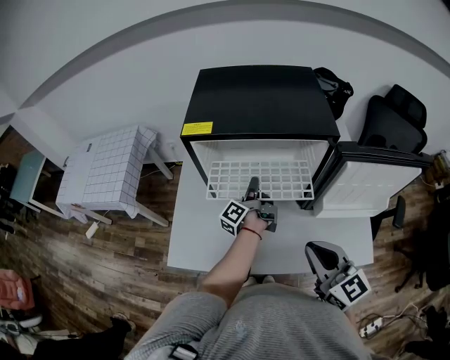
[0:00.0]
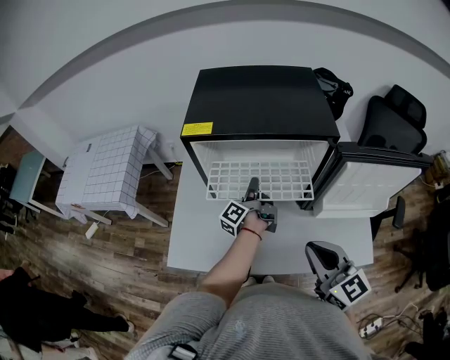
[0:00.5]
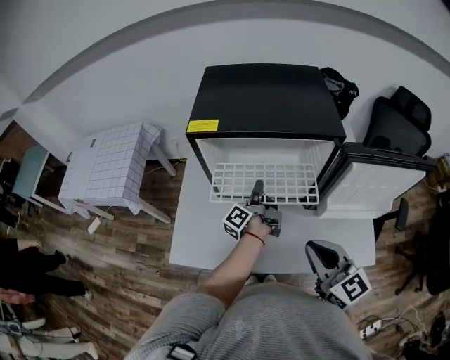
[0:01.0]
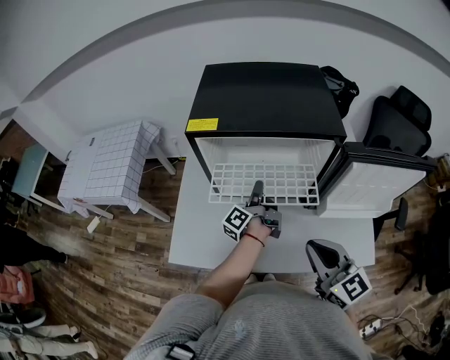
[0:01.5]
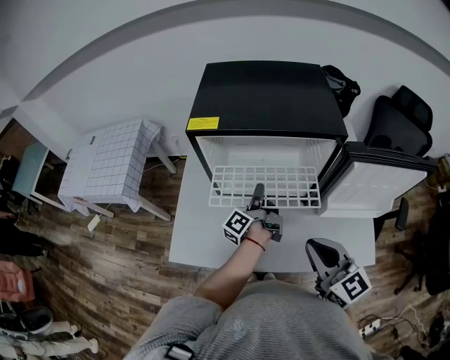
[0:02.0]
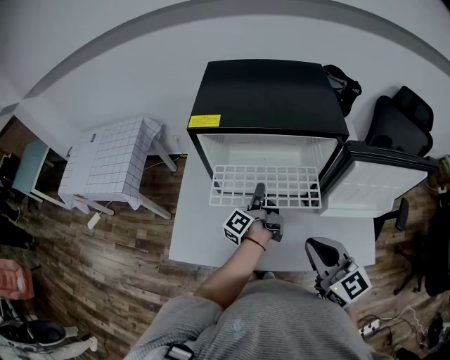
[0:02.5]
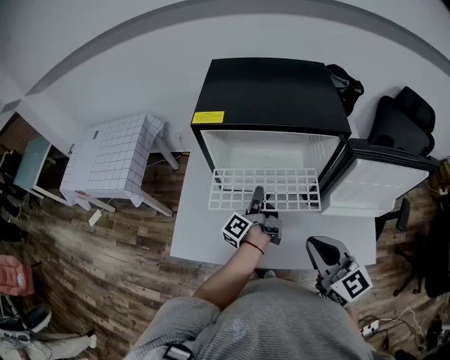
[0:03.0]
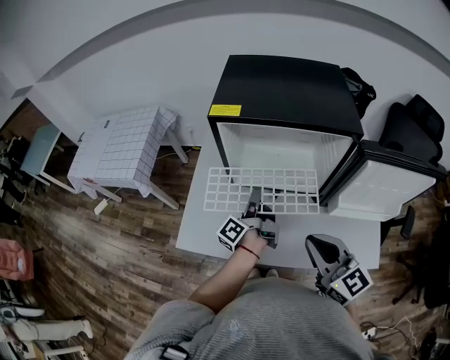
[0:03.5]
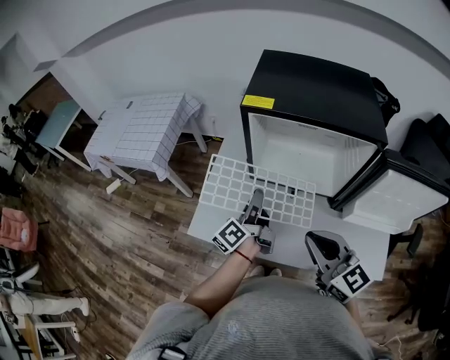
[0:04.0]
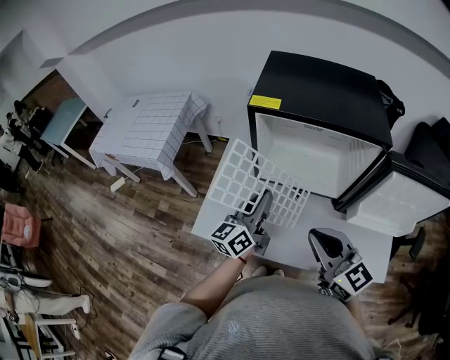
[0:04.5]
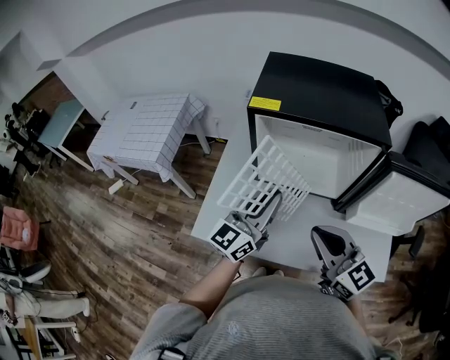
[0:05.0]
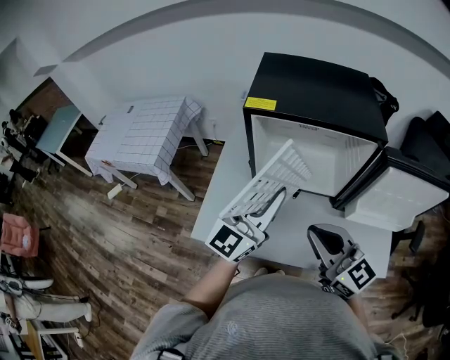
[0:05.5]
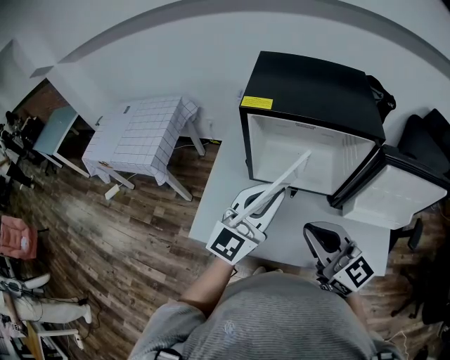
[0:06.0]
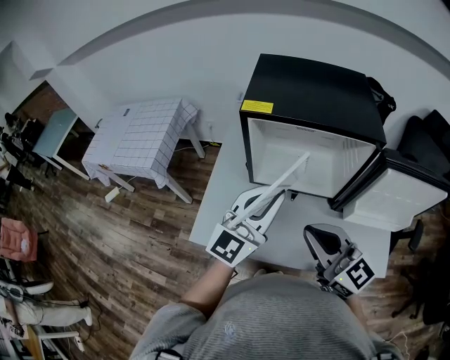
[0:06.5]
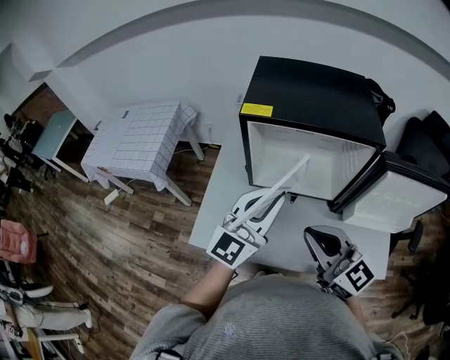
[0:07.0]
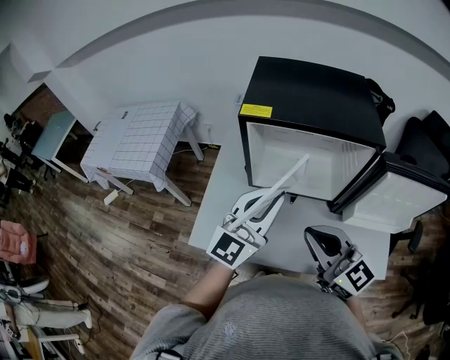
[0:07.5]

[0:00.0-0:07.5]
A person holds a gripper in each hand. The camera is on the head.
0:00.0 to 0:02.0: The grippers stay close to where they were, moving slightly.
0:02.0 to 0:04.0: The right gripper goes some 5 cm to the left. The left gripper goes approximately 15 cm to the left and backward, and swivels approximately 20 degrees.
0:04.0 to 0:05.5: The left gripper travels upward by roughly 15 cm, and rotates around the line of its fingers by about 60 degrees, clockwise from behind.
0:05.5 to 0:07.5: The grippers make only small movements.

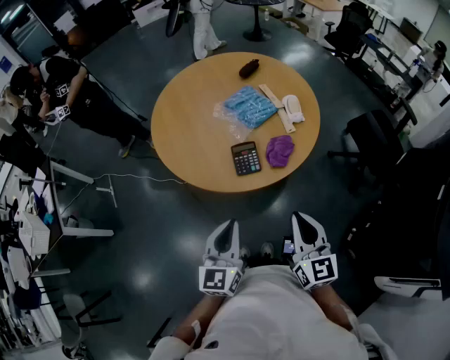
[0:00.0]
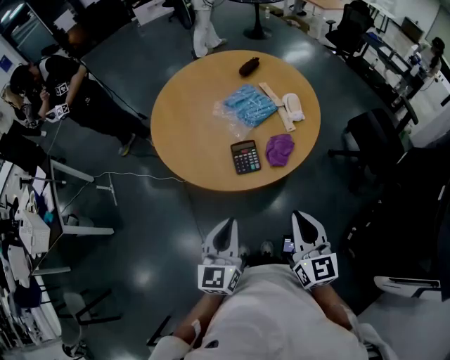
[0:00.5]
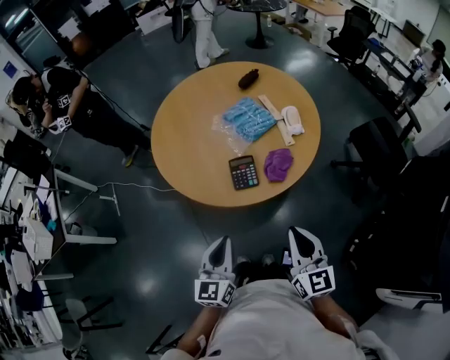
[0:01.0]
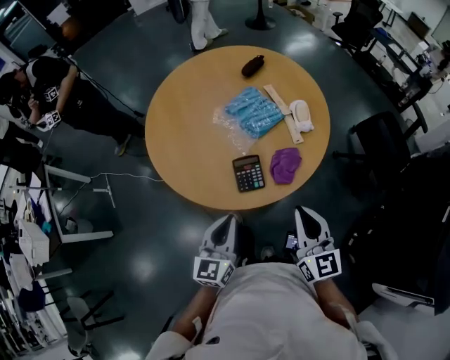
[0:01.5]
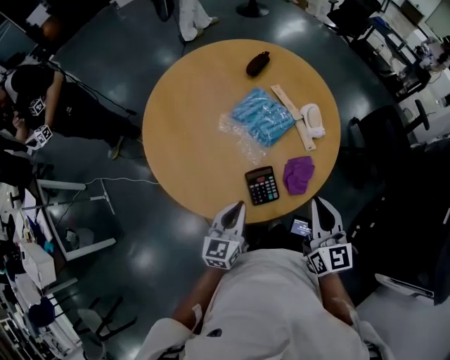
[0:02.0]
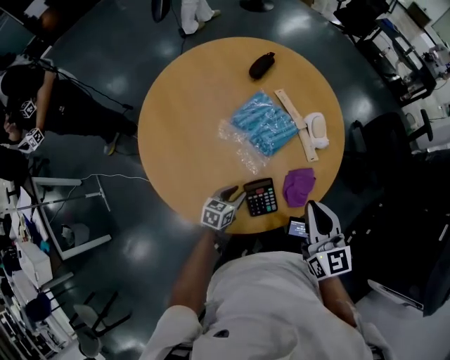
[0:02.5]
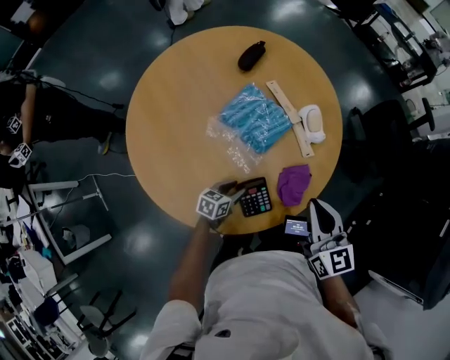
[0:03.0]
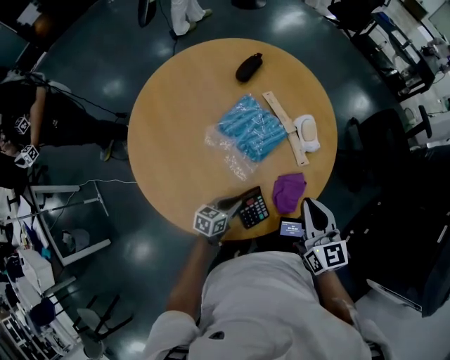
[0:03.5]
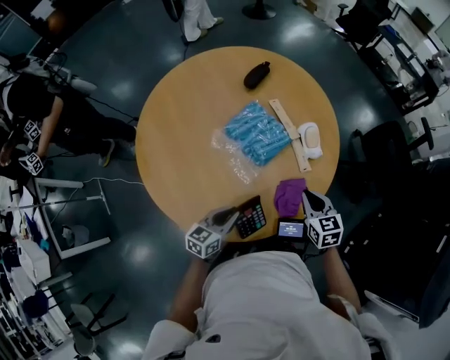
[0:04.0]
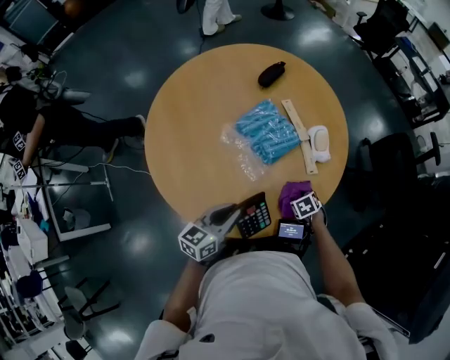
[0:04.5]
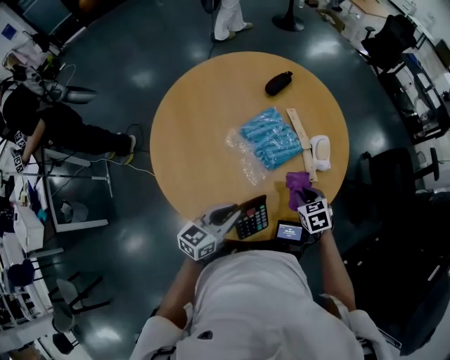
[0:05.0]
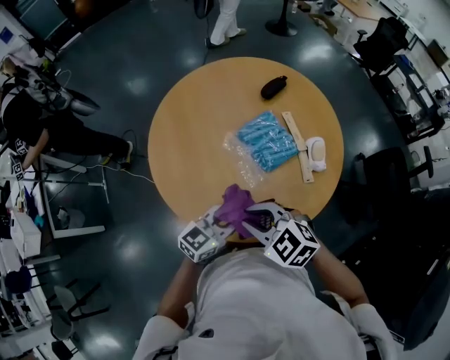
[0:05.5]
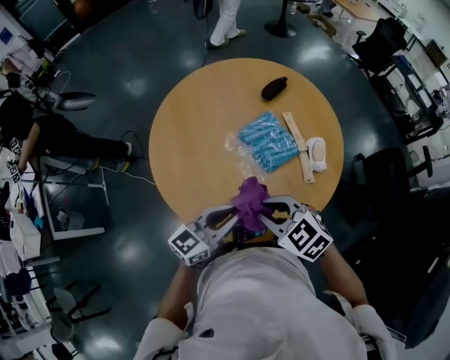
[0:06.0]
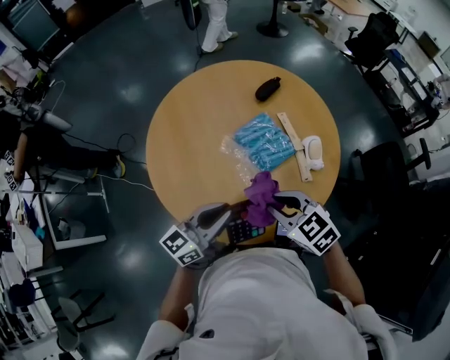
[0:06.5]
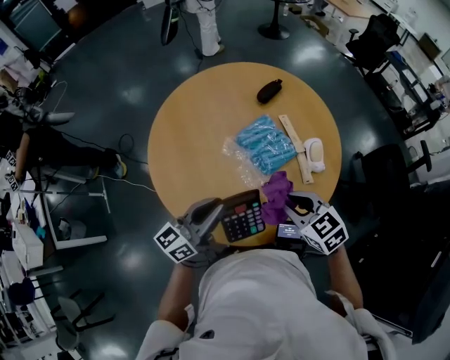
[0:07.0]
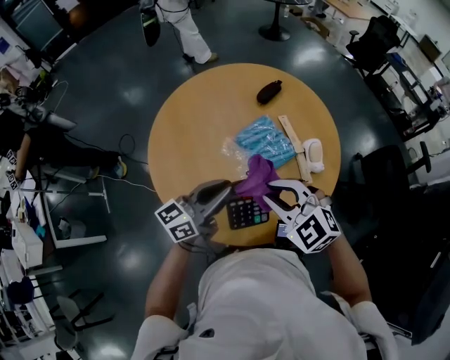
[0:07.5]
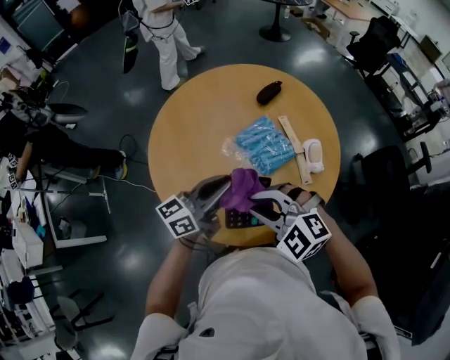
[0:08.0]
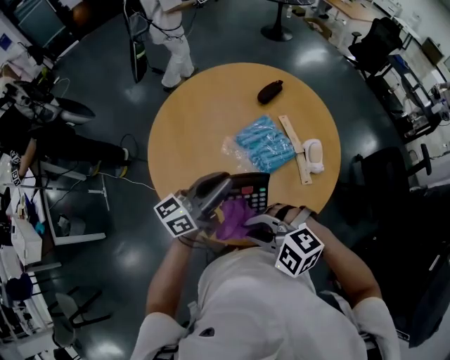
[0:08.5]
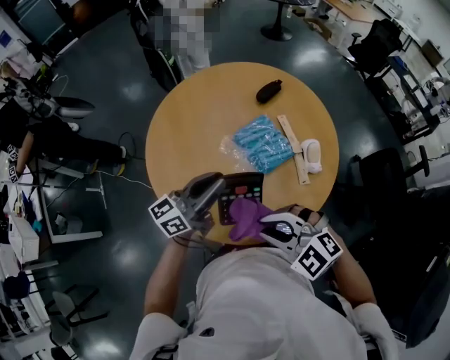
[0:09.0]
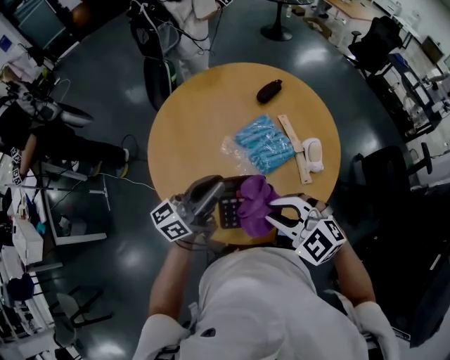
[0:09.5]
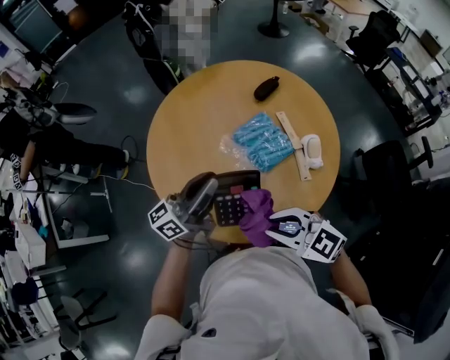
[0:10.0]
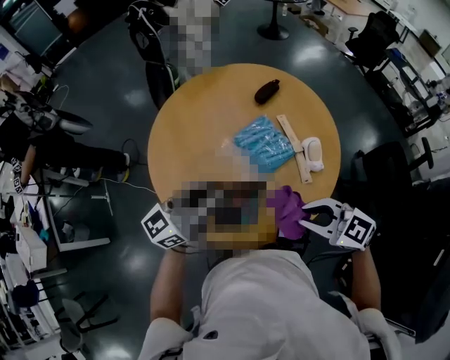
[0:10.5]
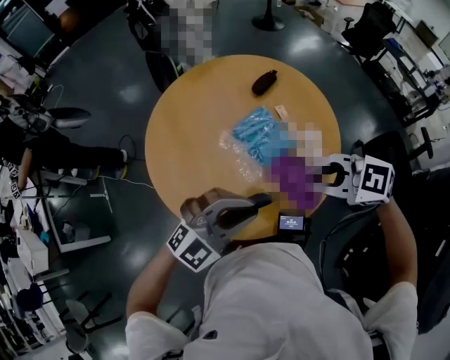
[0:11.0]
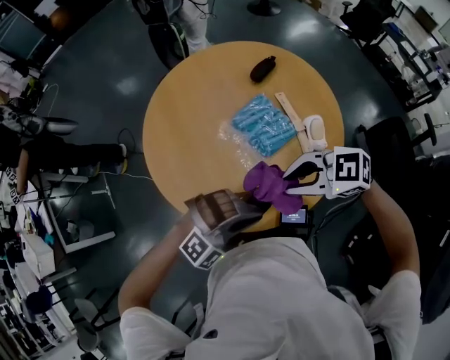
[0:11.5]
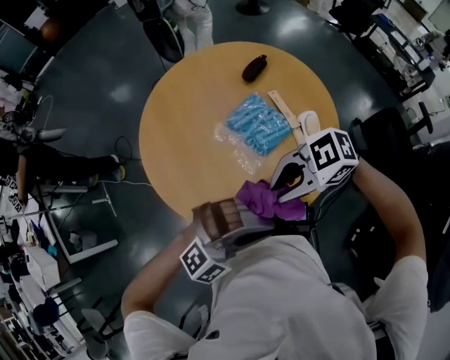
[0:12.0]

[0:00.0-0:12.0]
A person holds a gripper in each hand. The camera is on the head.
0:00.0 to 0:02.0: The left gripper goes about 30 cm forward and downward. Meanwhile the right gripper heads forward, covering roughly 25 cm.
0:02.0 to 0:04.0: The right gripper shifts about 20 cm downward and forward, and swivels some 30 degrees. The left gripper is displaced downward and forward by approximately 10 cm, changes its angle by about 20 degrees, and opens, then closes again.
0:04.0 to 0:06.0: The right gripper ends up about 25 cm from where it was, turns by about 50 degrees, and opens and closes again. The left gripper moves upward, approximately 15 cm, and rotates approximately 20 degrees.
0:06.0 to 0:08.0: The right gripper travels to the right and back again, some 10 cm each way, and turns by about 30 degrees. Meanwhile the left gripper travels forward and upward by approximately 10 cm, and changes its angle by about 20 degrees.
0:08.0 to 0:10.0: The right gripper goes forward and backward, approximately 5 cm each way, reversing 2 times, and turns by approximately 30 degrees.
0:10.0 to 0:12.0: The left gripper travels downward and back again, about 5 cm each way, and twists roughly 80 degrees clockwise, seen from behind; the right gripper turns by about 40 degrees.

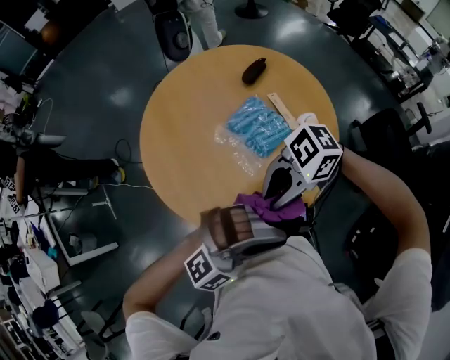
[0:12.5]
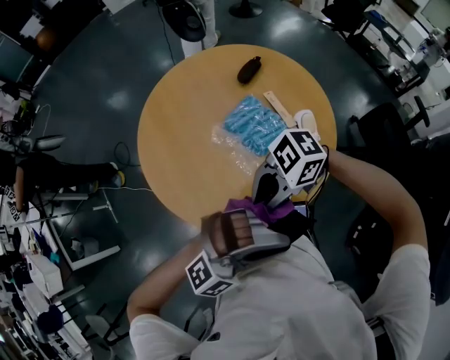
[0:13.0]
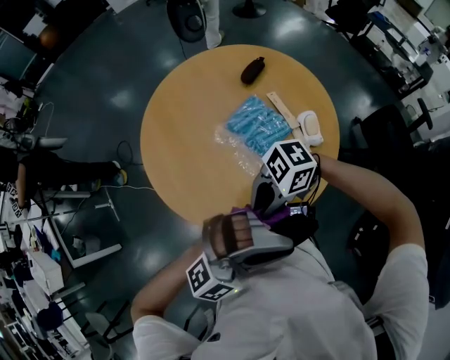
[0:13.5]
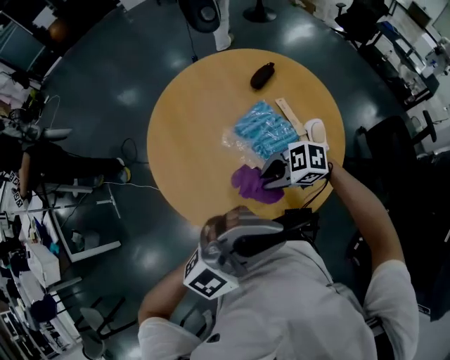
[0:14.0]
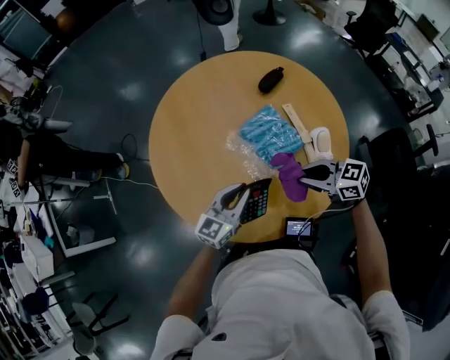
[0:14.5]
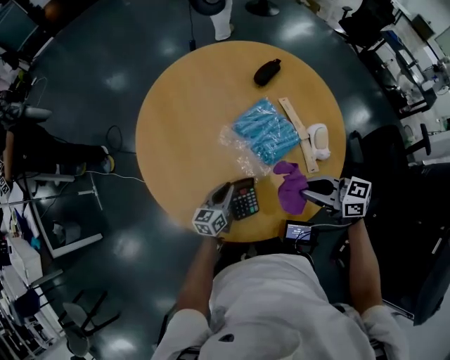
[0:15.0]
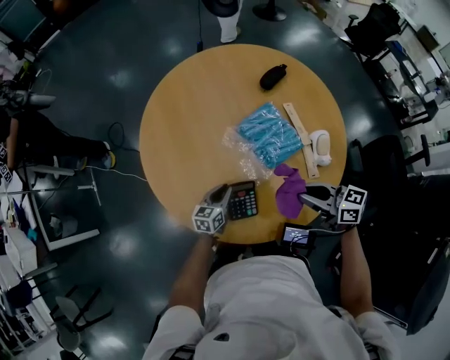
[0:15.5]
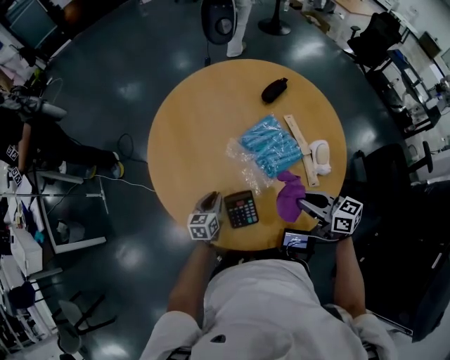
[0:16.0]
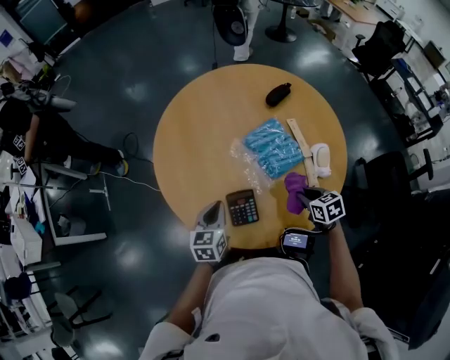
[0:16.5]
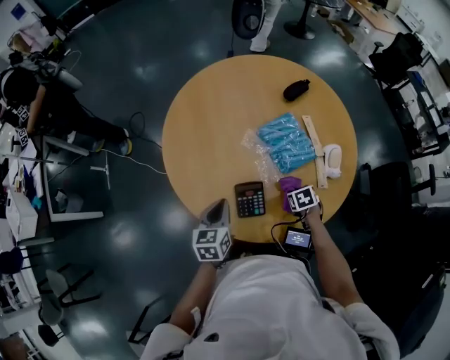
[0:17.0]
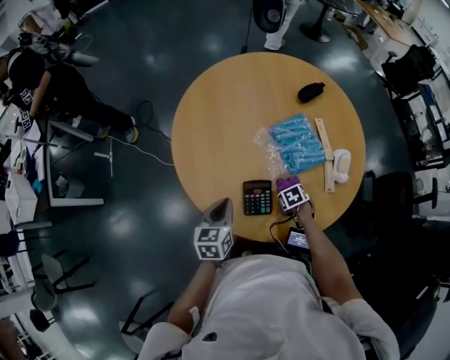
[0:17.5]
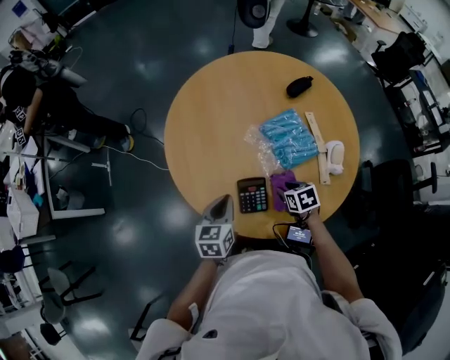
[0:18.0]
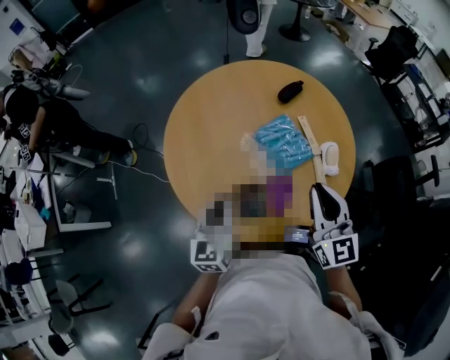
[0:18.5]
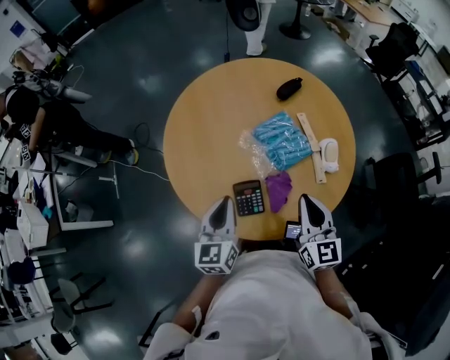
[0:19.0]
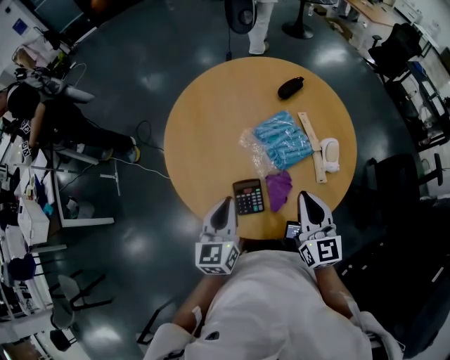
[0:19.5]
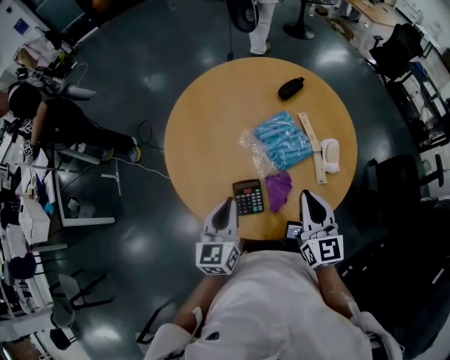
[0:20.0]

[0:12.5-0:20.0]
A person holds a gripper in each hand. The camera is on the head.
0:12.5 to 0:14.5: The left gripper moves about 25 cm, and rotates around the line of its fingers by some 70 degrees, counterclockwise from behind. Meanwhile the right gripper moves some 20 cm, and swivels approximately 50 degrees.
0:14.5 to 0:16.5: The right gripper heads downward, covering roughly 10 cm, and rotates approximately 40 degrees. The left gripper is displaced to the left by some 10 cm, travels downward and back again, some 20 cm each way, and changes its angle by some 40 degrees.
0:16.5 to 0:18.0: The right gripper moves some 15 cm downward and comes back.
0:18.0 to 0:20.0: The right gripper moves upward, some 25 cm, angles its fingers upward, by roughly 50 degrees, and closes. Meanwhile the left gripper moves upward, roughly 10 cm.
